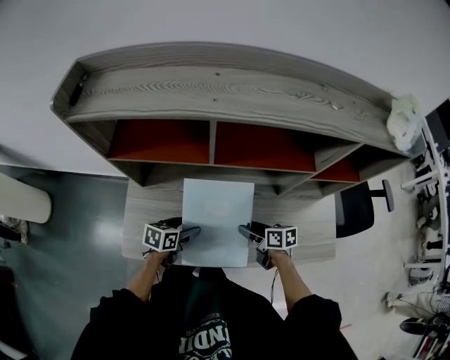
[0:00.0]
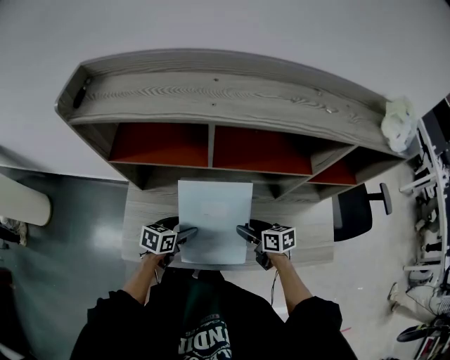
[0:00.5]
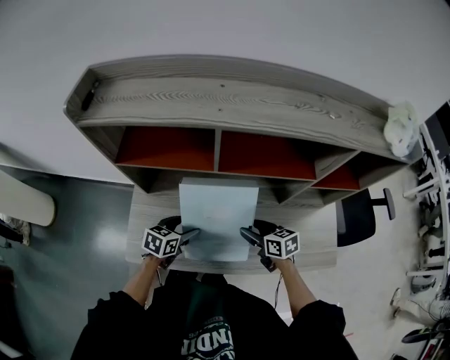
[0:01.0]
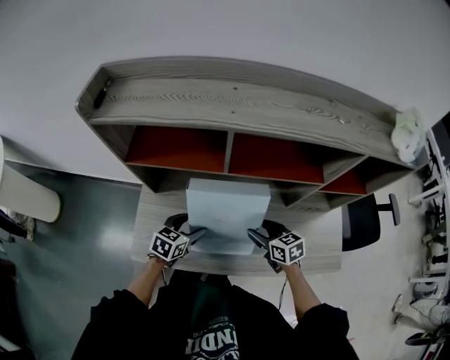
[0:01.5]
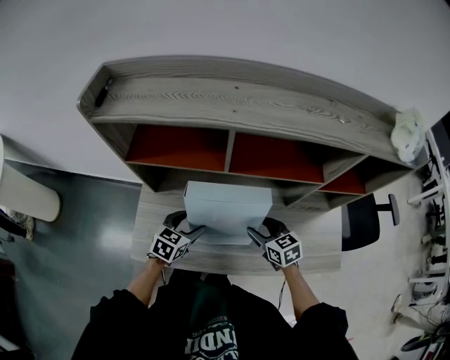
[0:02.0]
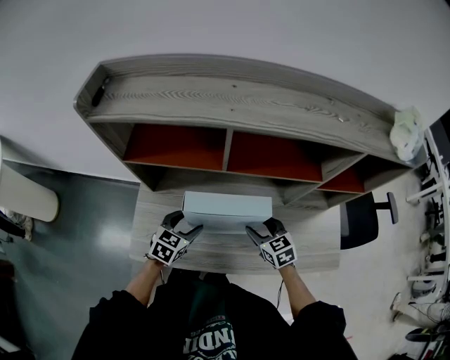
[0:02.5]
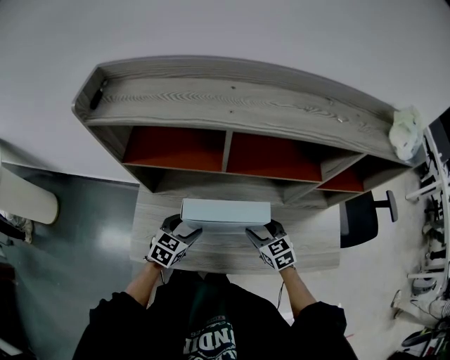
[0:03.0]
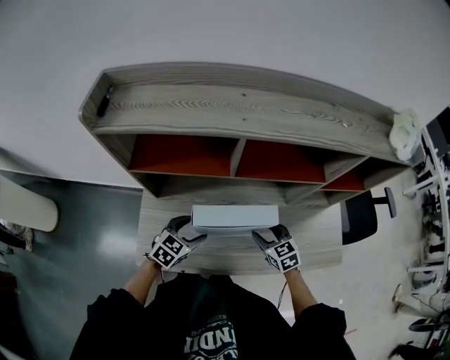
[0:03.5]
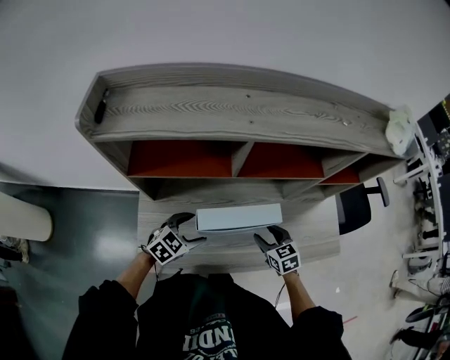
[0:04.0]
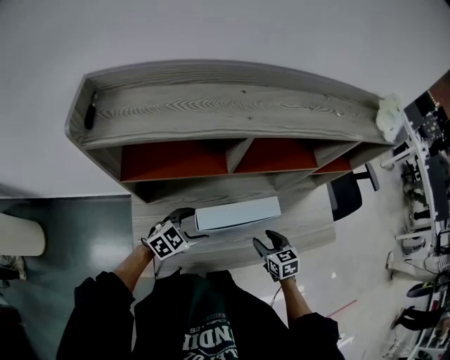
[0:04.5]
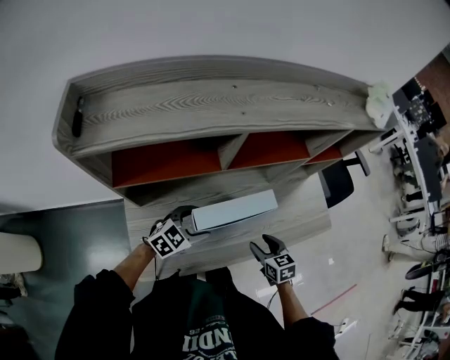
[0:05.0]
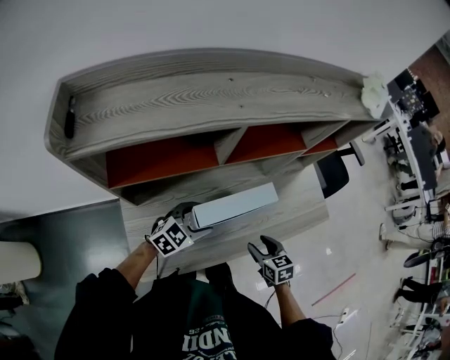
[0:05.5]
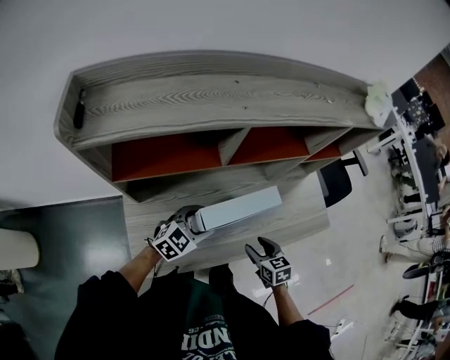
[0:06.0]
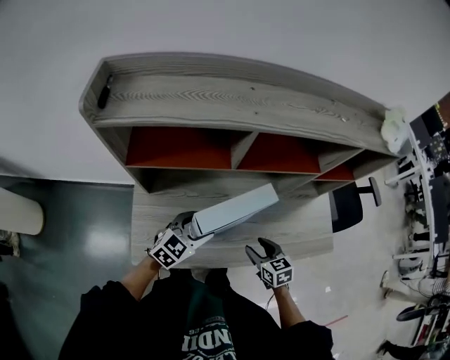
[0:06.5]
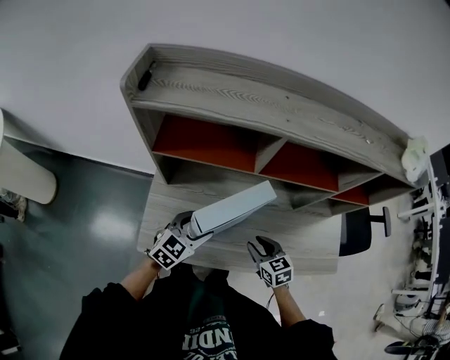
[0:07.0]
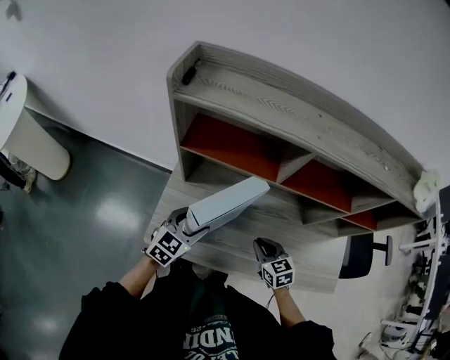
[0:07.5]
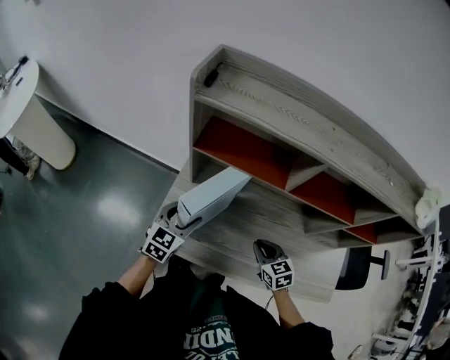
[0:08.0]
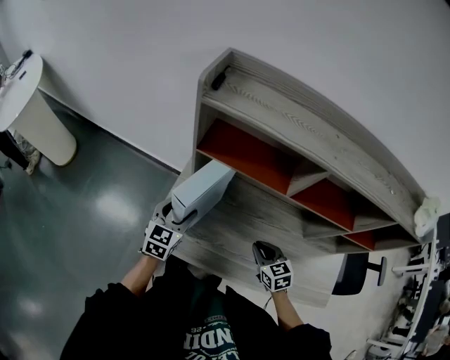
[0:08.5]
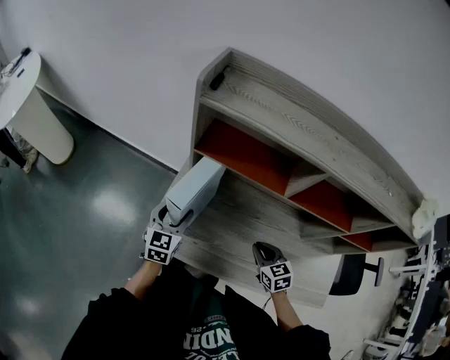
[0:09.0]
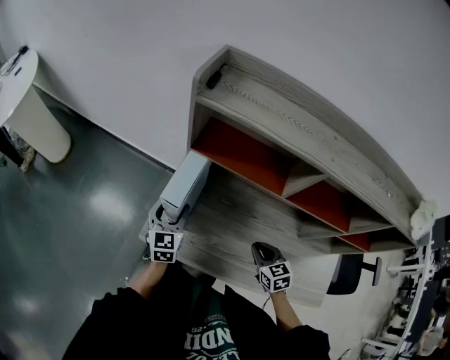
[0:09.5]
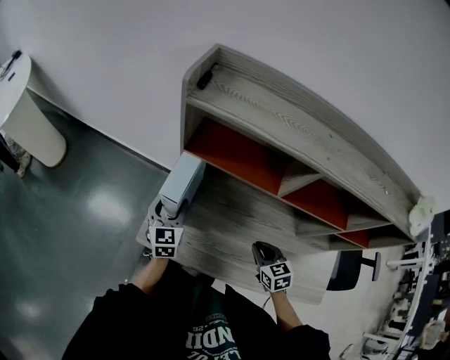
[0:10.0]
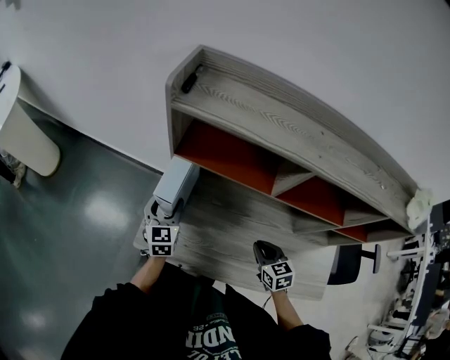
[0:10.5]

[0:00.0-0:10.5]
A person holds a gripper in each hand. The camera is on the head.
0:00.0 to 0:02.0: Both grippers travel together upward, approximately 5 cm. The right gripper turns by roughly 40 degrees. The left gripper rotates roughly 30 degrees.
0:02.0 to 0:04.0: The left gripper turns by roughly 30 degrees.
0:04.0 to 0:06.5: The right gripper goes about 5 cm backward. Meanwhile the left gripper moves roughly 5 cm.
0:06.5 to 0:08.5: The right gripper shifts by approximately 10 cm, rotates about 30 degrees, and closes its fingers. Meanwhile the left gripper moves approximately 20 cm, and turns by roughly 50 degrees.
0:08.5 to 0:10.5: The left gripper shifts roughly 5 cm forward.

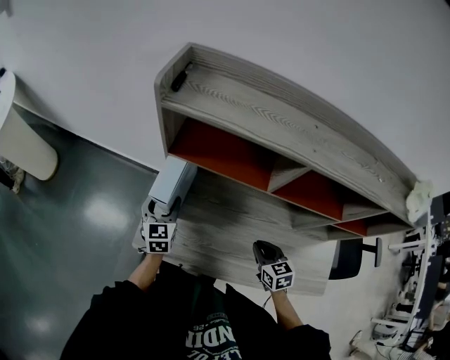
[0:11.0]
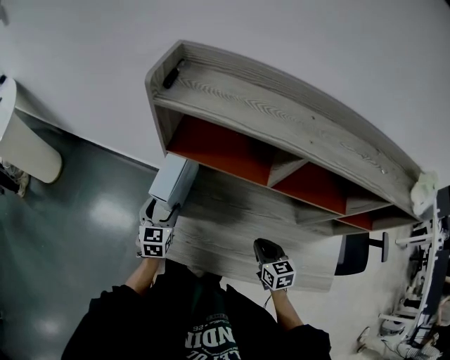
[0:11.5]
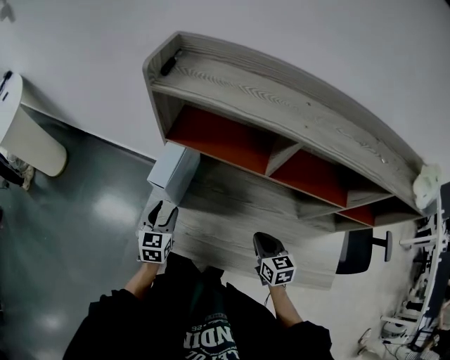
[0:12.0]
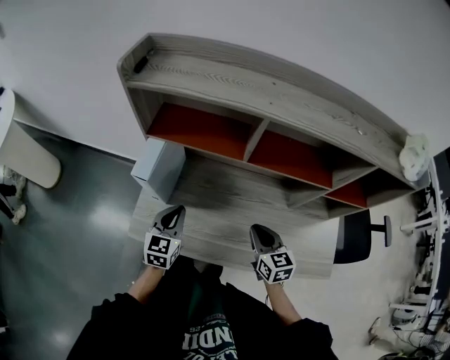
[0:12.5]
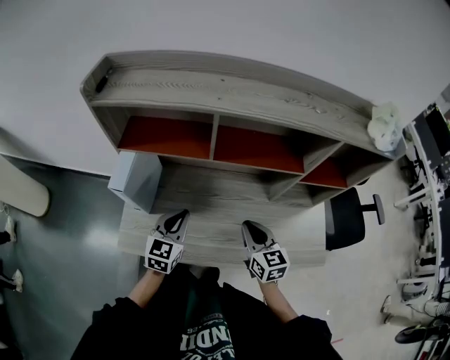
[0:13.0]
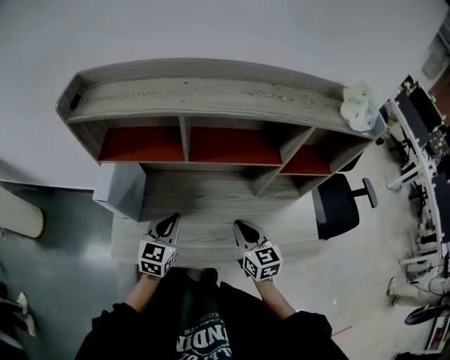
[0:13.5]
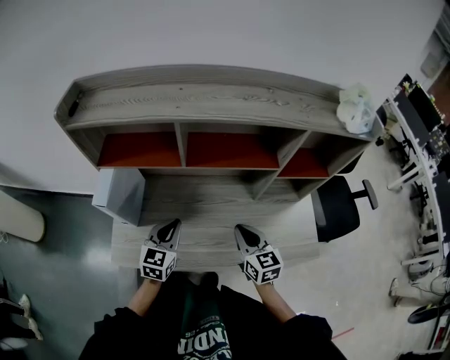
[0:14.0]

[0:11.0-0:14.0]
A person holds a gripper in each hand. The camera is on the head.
0:11.0 to 0:12.5: The right gripper heads upward, covering roughly 5 cm; the left gripper heads backward and to the right, covering approximately 15 cm, and closes.
0:12.5 to 0:14.0: The right gripper travels to the right by roughly 5 cm; the left gripper heads to the right, covering some 10 cm.

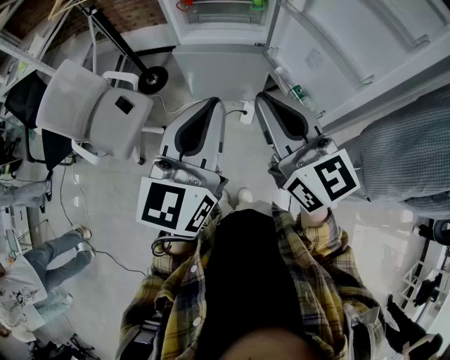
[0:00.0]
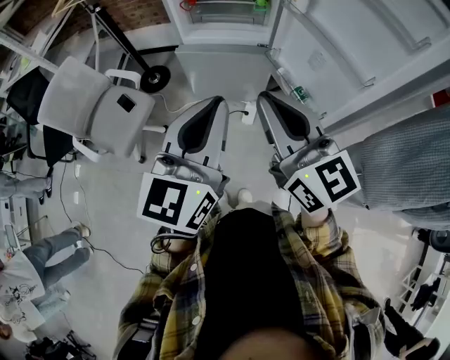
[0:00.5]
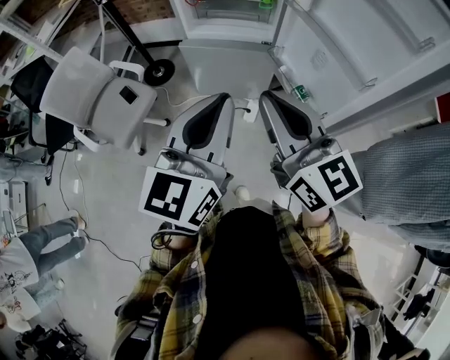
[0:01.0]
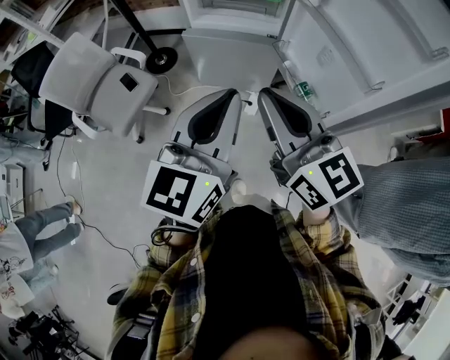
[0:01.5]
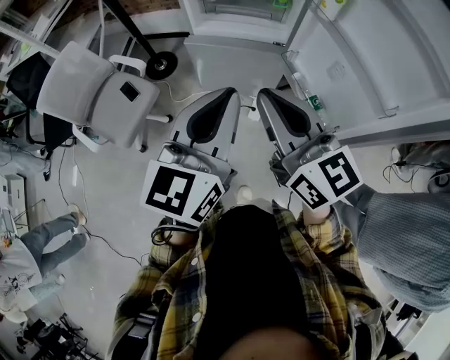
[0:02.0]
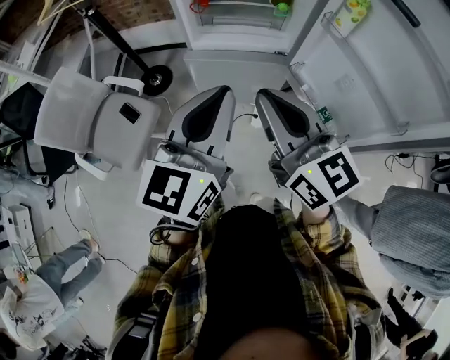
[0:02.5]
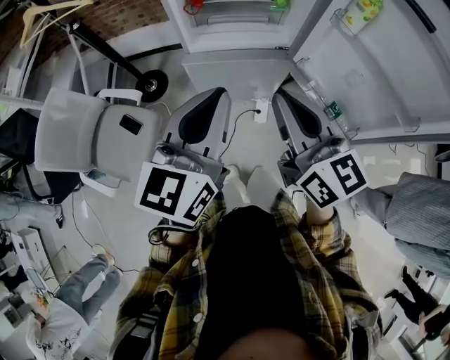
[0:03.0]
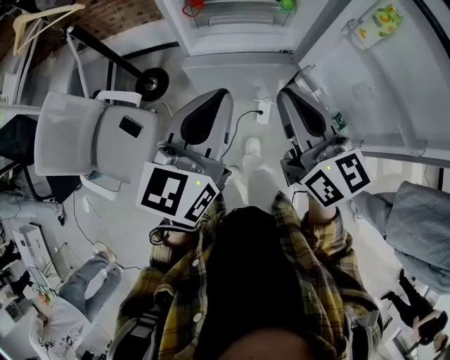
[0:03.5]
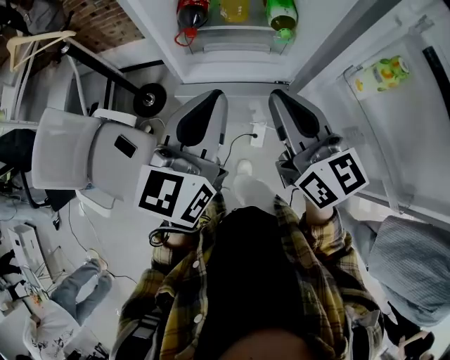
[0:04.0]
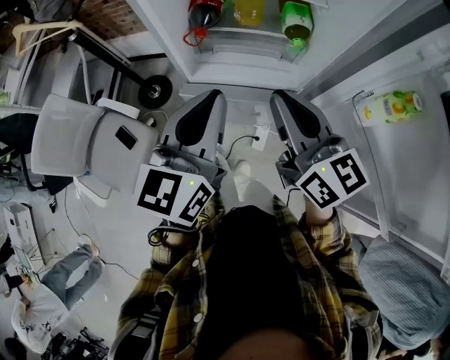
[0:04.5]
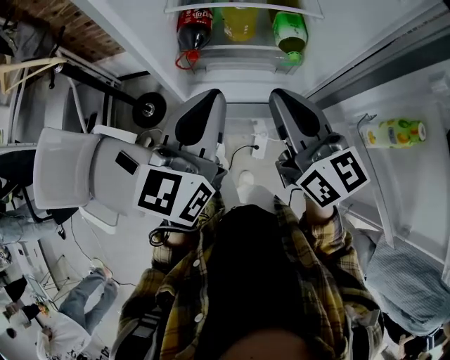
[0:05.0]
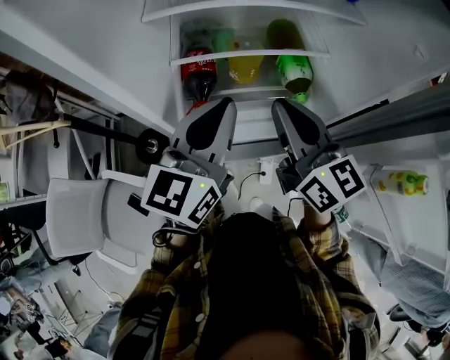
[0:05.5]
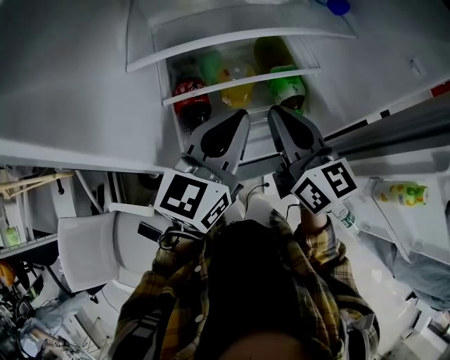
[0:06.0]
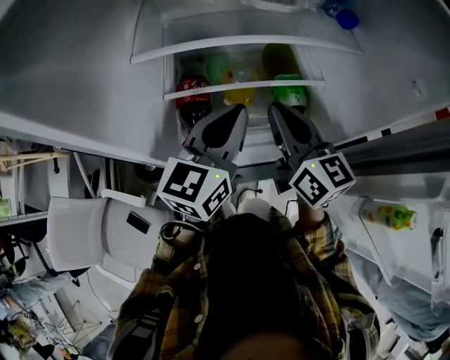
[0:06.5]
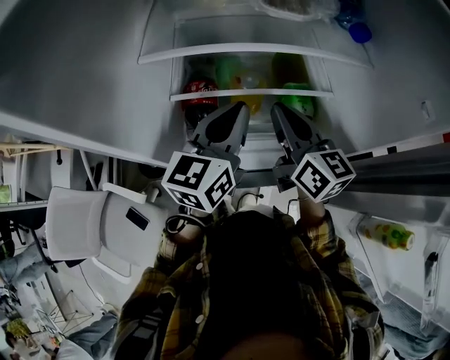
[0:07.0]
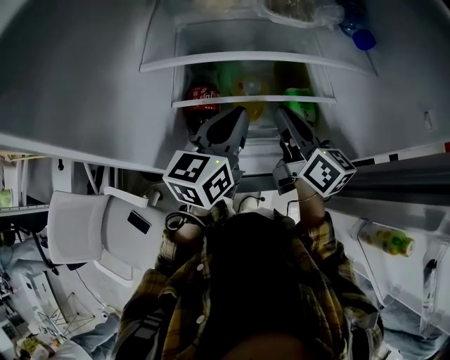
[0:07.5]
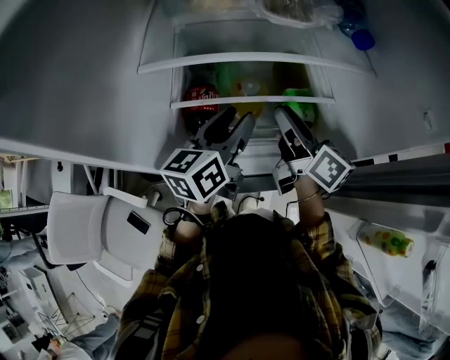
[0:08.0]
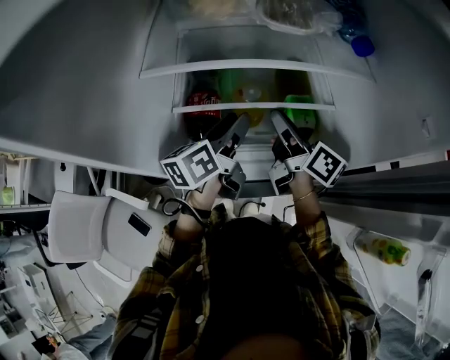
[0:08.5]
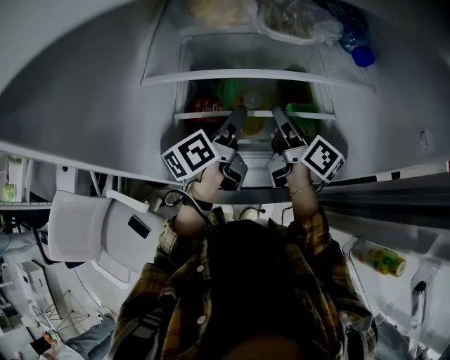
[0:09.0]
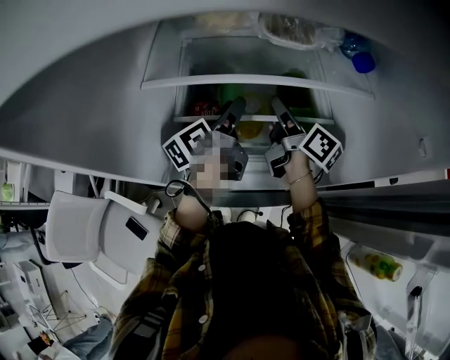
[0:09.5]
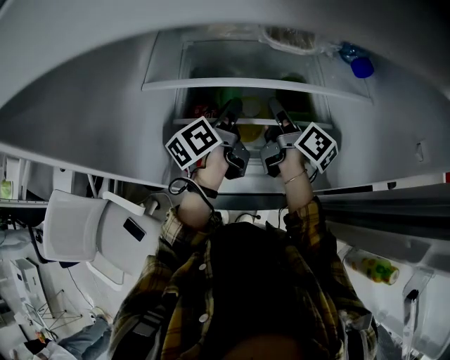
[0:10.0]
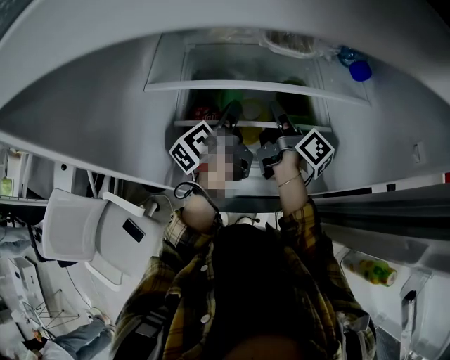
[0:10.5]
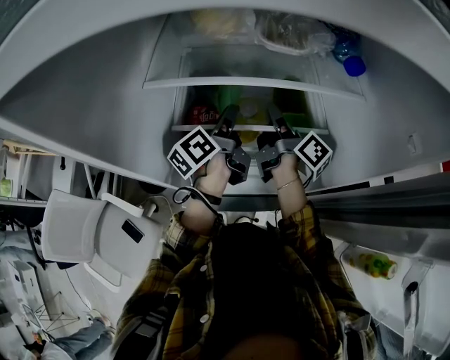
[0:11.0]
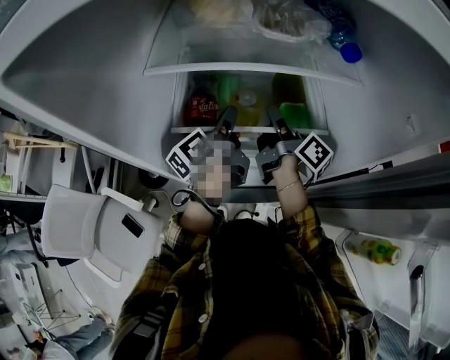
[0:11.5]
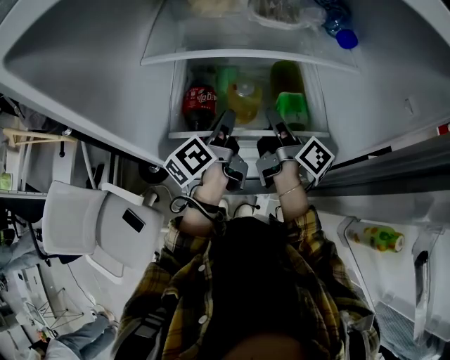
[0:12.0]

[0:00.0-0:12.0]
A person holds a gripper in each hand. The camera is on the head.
0:00.0 to 0:02.0: Both grippers travel together forward, approximately 5 cm.
0:02.0 to 0:04.0: The grippers both shift forward by roughly 25 cm.
0:04.0 to 0:06.0: Both grippers travel together forward, approximately 25 cm. The left gripper turns by roughly 20 degrees.
0:06.0 to 0:08.0: The grippers both shift forward and downward by some 10 cm. The right gripper swivels roughly 30 degrees, and opens up. Meanwhile the left gripper turns by about 30 degrees, and opens up.
0:08.0 to 0:10.0: Both grippers travel together forward, about 10 cm. The left gripper rotates roughly 30 degrees, and closes its fingers.
0:10.0 to 0:12.0: Both grippers travel together backward, about 10 cm.

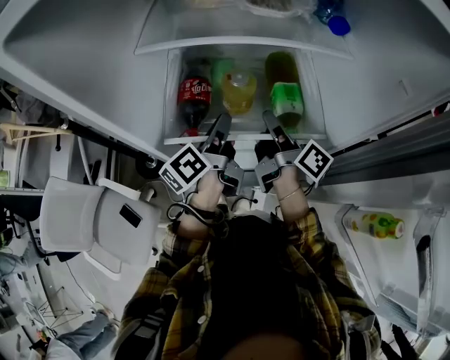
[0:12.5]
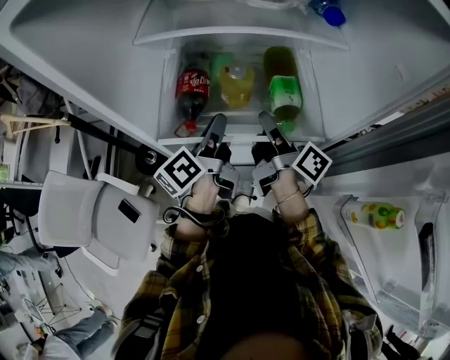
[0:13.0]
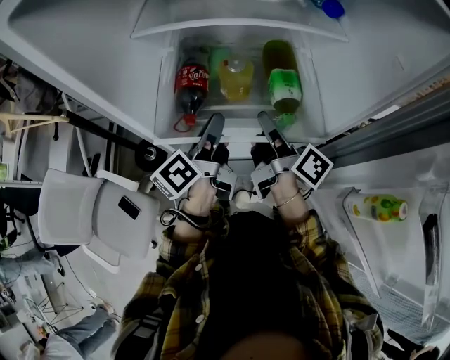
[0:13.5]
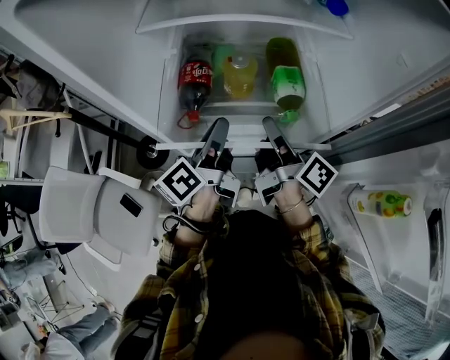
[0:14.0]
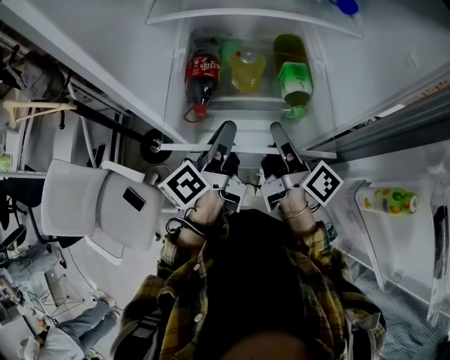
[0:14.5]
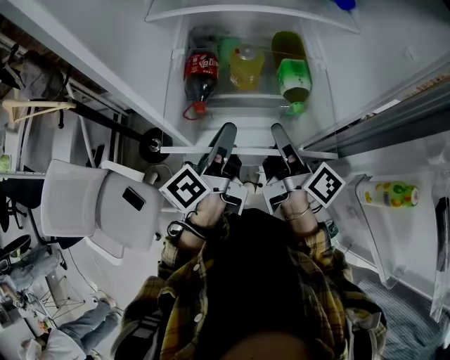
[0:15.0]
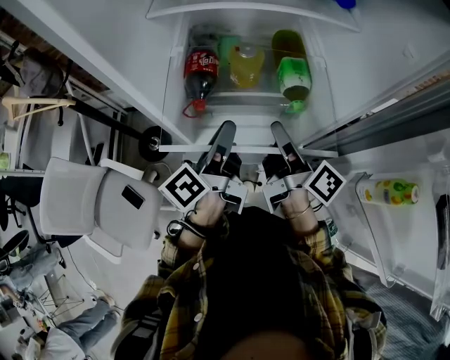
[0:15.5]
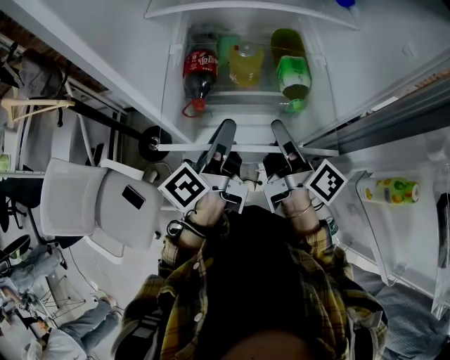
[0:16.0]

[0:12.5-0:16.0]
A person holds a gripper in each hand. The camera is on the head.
0:12.5 to 0:14.5: Both grippers move backward, approximately 10 cm.
0:14.5 to 0:16.0: There are only small adjustments of the grippers.
